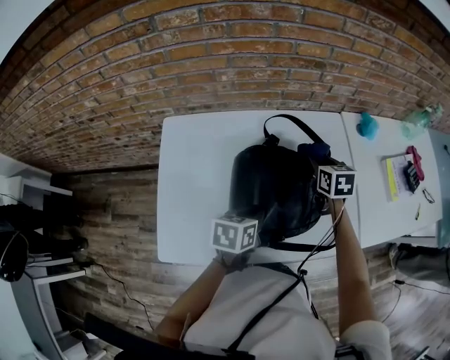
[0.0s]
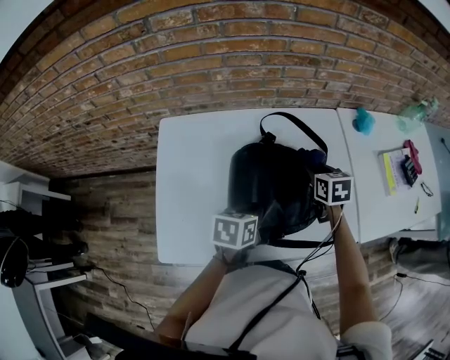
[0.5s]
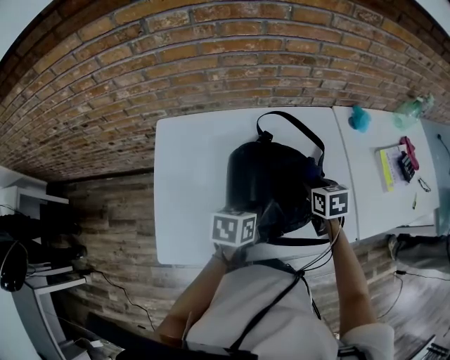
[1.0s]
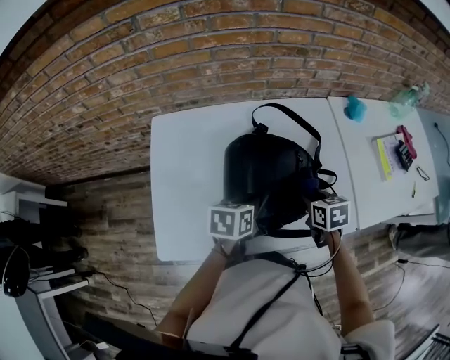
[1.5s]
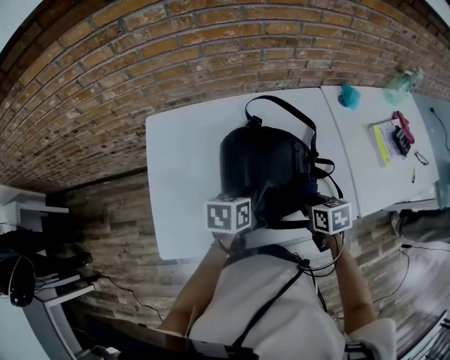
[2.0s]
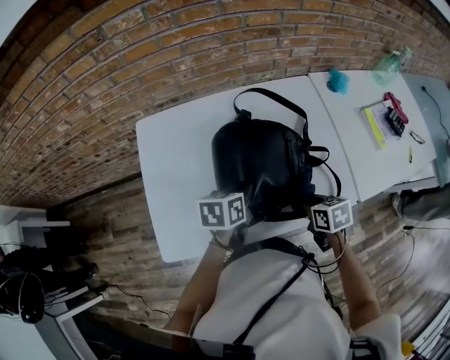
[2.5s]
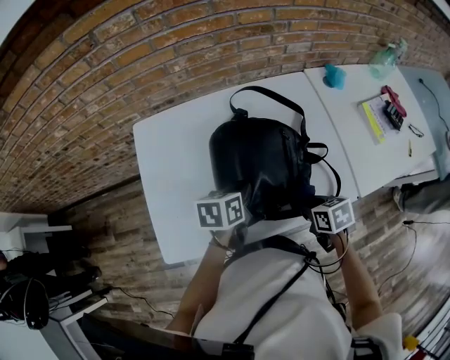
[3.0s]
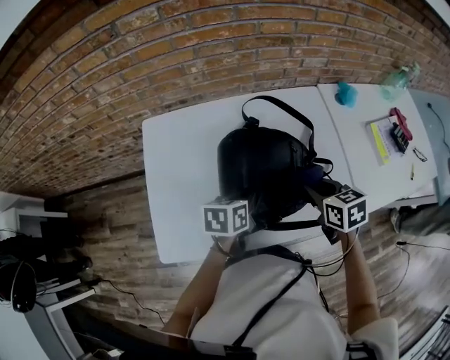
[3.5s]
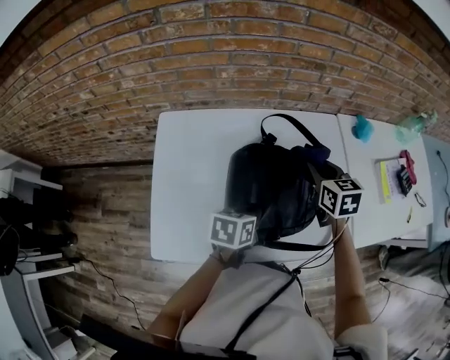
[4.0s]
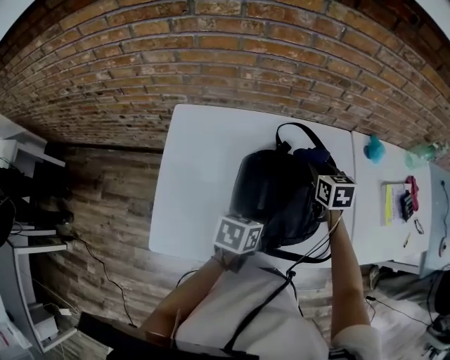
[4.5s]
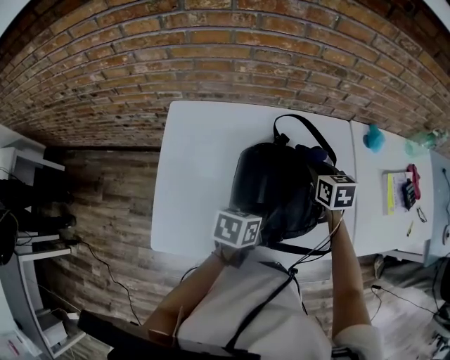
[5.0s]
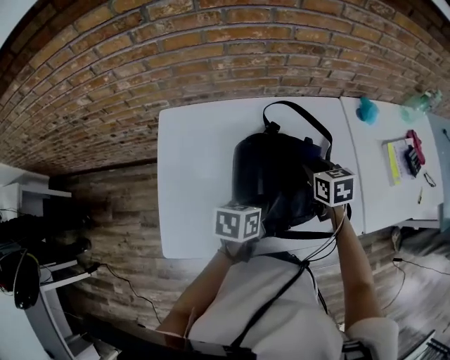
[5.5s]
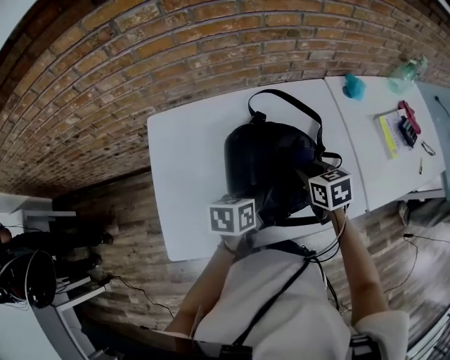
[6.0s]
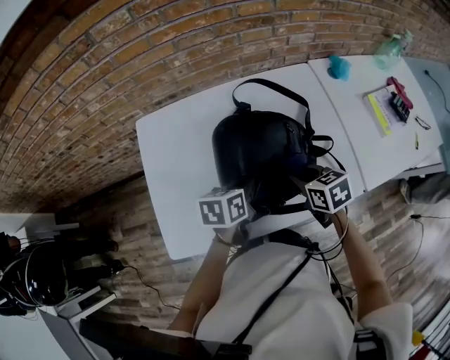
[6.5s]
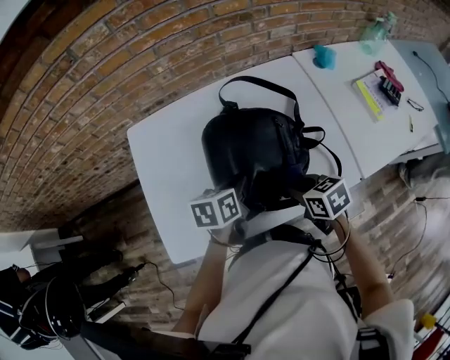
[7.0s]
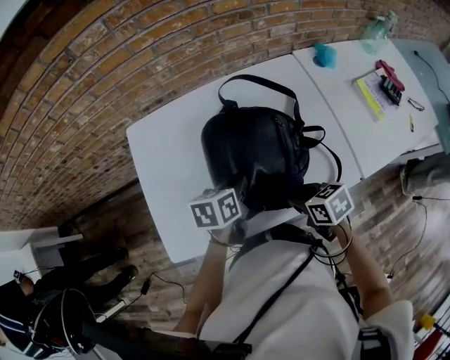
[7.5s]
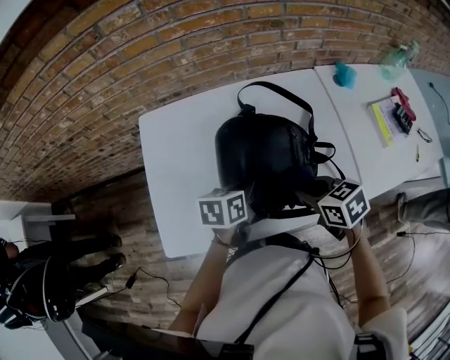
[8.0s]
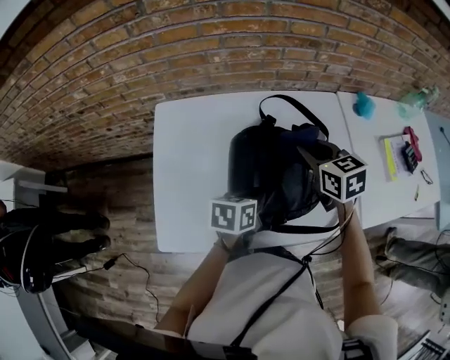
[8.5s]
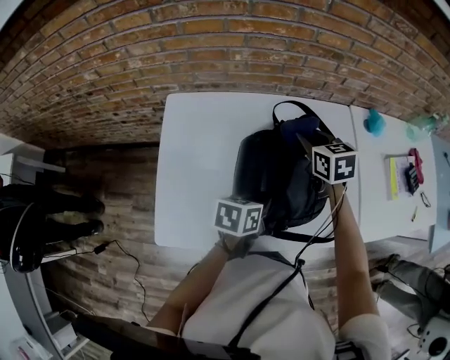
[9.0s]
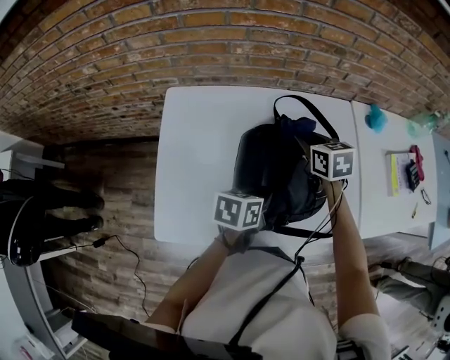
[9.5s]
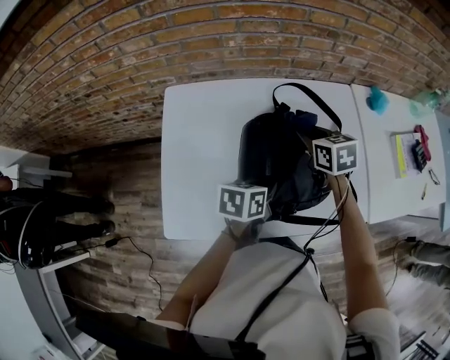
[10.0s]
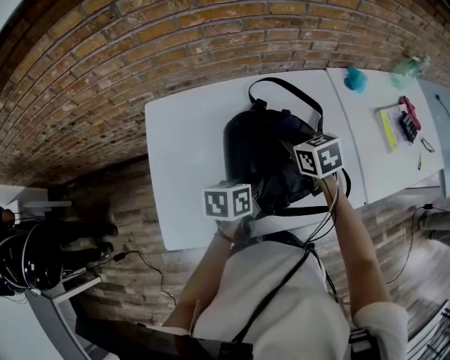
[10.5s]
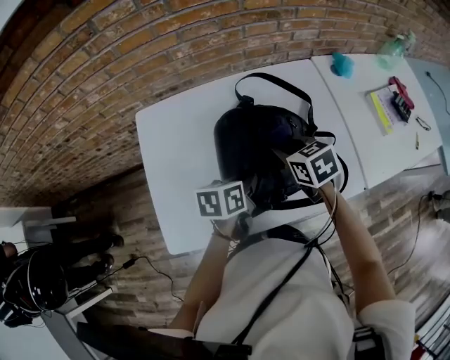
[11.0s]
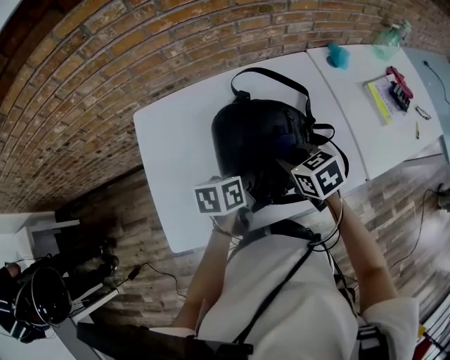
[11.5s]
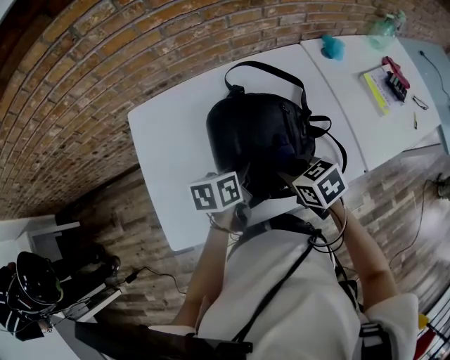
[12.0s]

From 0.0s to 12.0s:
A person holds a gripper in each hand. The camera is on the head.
From 0.0s to 2.0s: The right gripper shifts some 20 cm backward.
From 2.0s to 4.0s: The right gripper is displaced forward and upward by about 20 cm, and changes its angle by approximately 20 degrees.
From 4.0s to 6.0s: The right gripper is displaced backward and downward by some 10 cm.
From 6.0s to 8.0s: The right gripper goes roughly 10 cm backward.
From 8.0s to 10.0s: The right gripper moves forward, approximately 20 cm.
From 10.0s to 12.0s: The right gripper travels backward by some 20 cm.

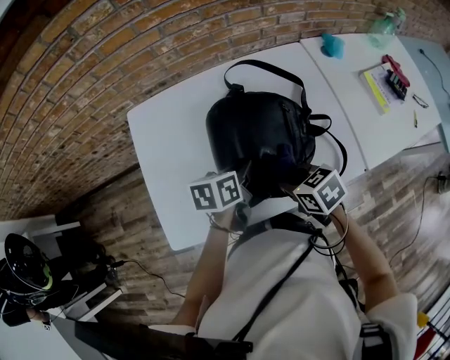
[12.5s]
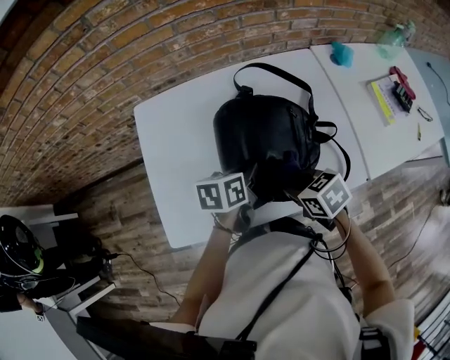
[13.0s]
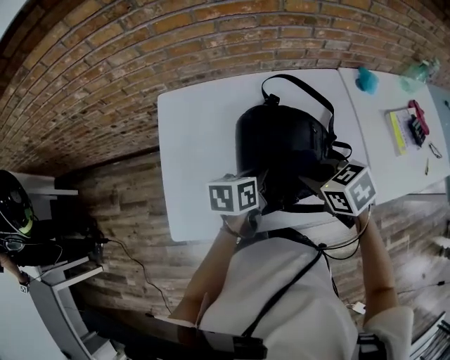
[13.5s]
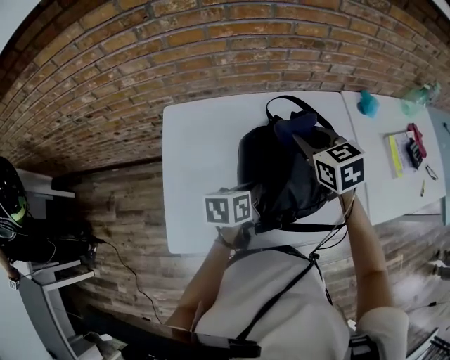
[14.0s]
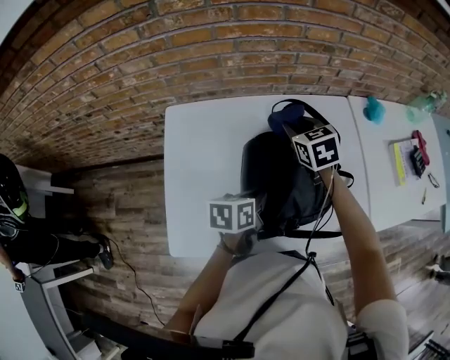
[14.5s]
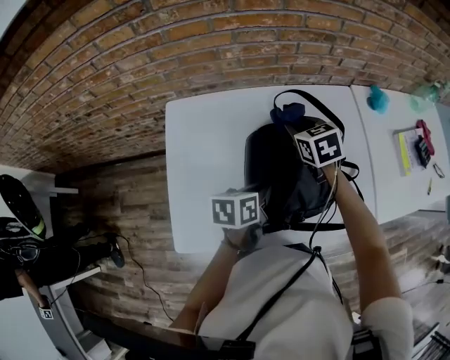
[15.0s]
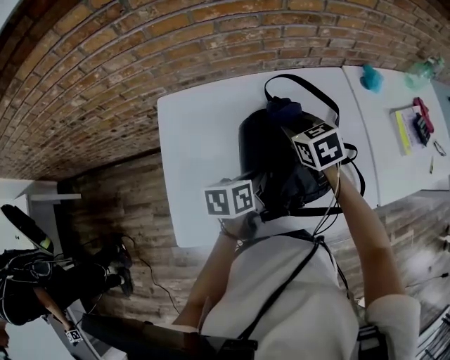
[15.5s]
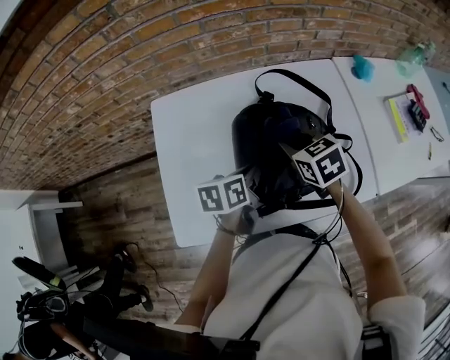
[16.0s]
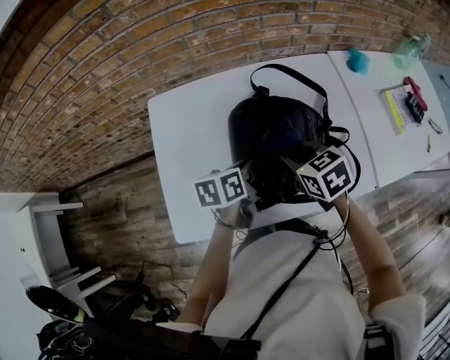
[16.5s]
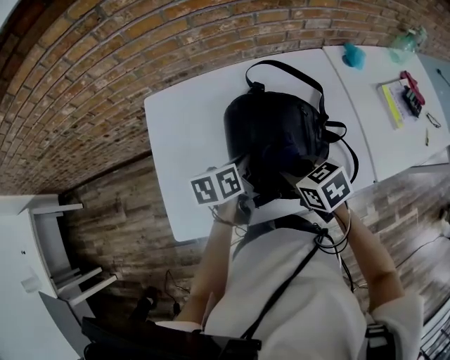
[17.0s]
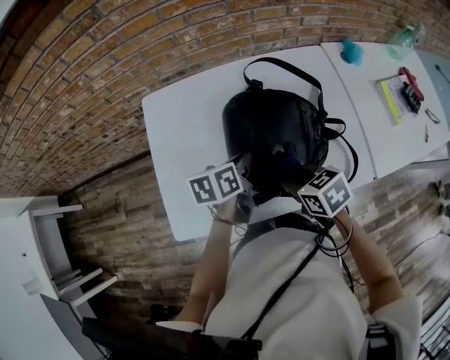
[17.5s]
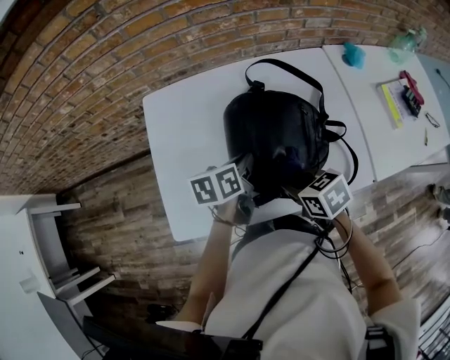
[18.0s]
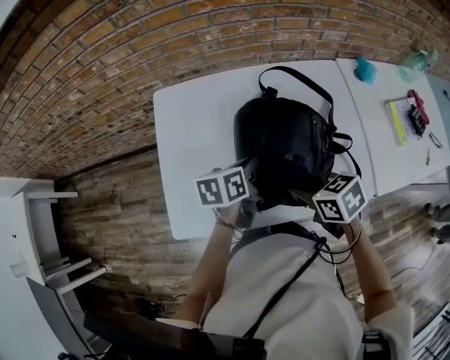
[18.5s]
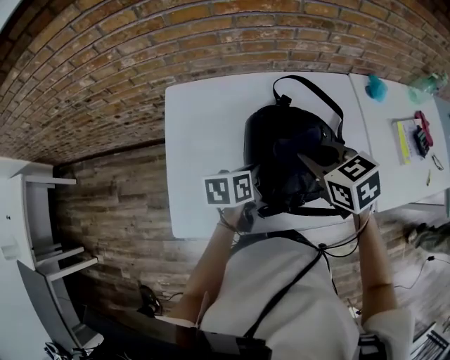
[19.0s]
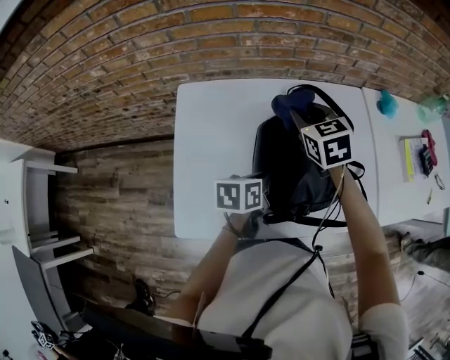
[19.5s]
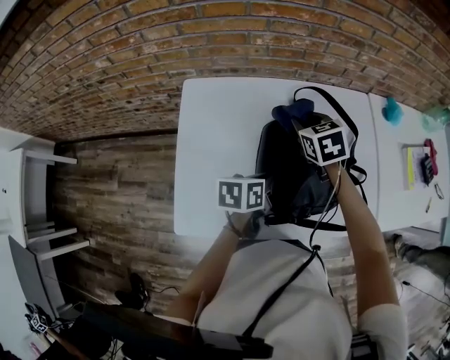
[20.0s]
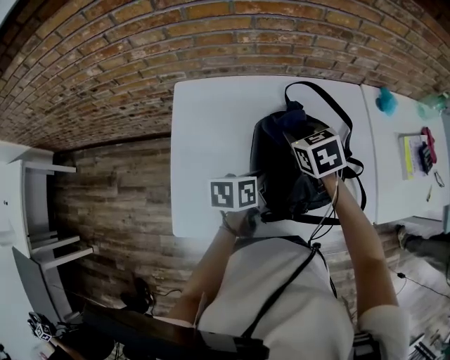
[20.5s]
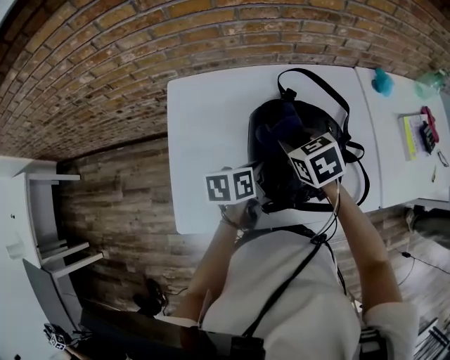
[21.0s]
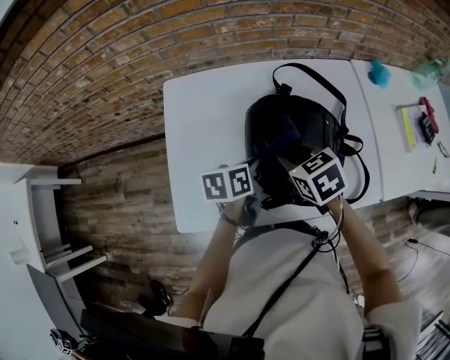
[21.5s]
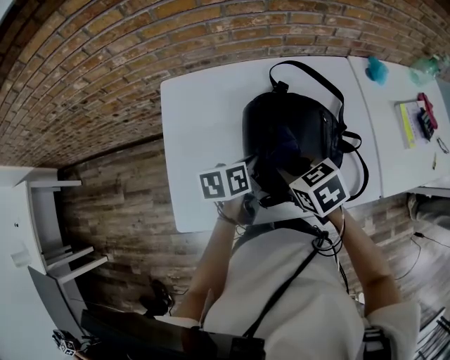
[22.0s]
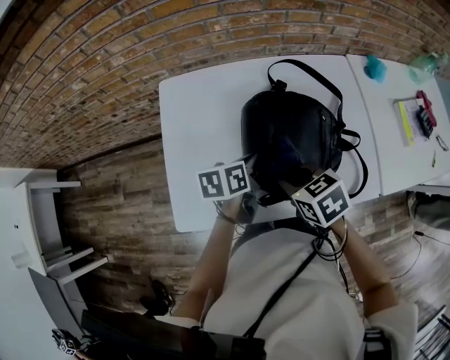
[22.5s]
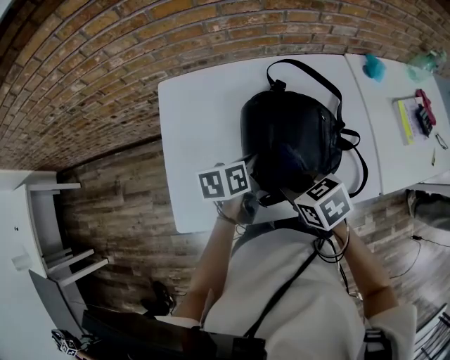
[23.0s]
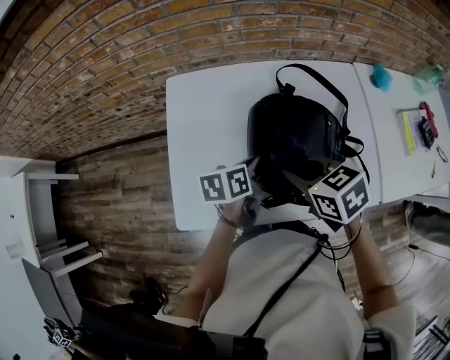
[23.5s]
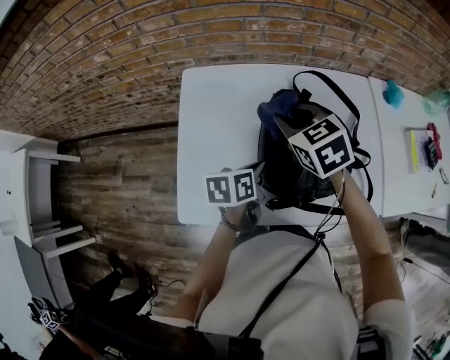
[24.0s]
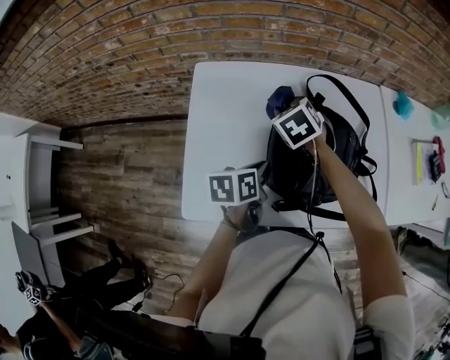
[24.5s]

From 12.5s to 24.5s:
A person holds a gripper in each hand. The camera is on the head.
From 12.5s to 14.5s: The right gripper moves forward, approximately 25 cm, and swivels approximately 30 degrees.
From 14.5s to 16.5s: The right gripper travels backward by some 20 cm.
From 16.5s to 18.5s: The right gripper goes some 10 cm backward.
From 18.5s to 20.5s: The right gripper goes roughly 20 cm forward, and turns by roughly 20 degrees.
From 20.5s to 22.5s: The right gripper heads backward, covering approximately 15 cm.
From 22.5s to 24.5s: The left gripper shifts by roughly 5 cm. Meanwhile the right gripper moves forward and to the left, roughly 20 cm, and changes its angle by about 30 degrees.

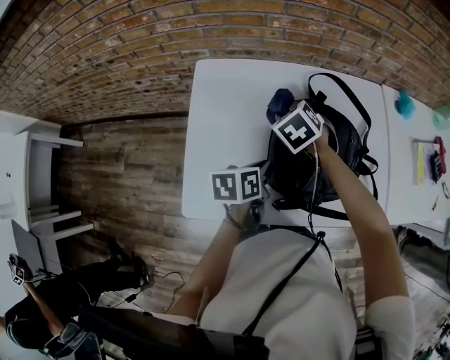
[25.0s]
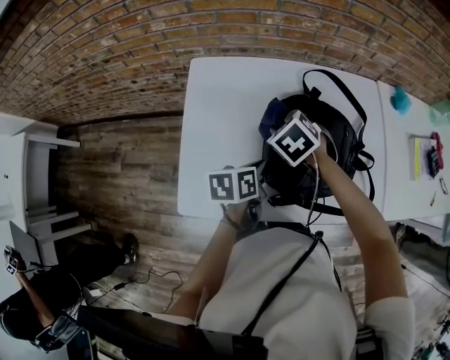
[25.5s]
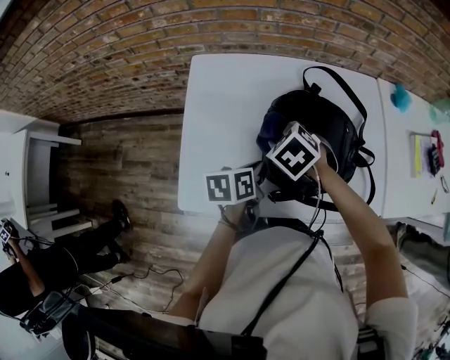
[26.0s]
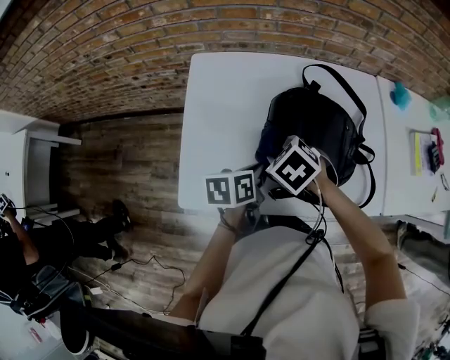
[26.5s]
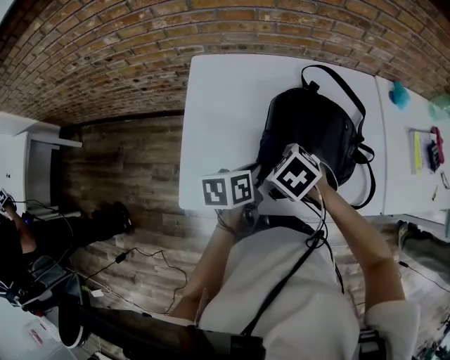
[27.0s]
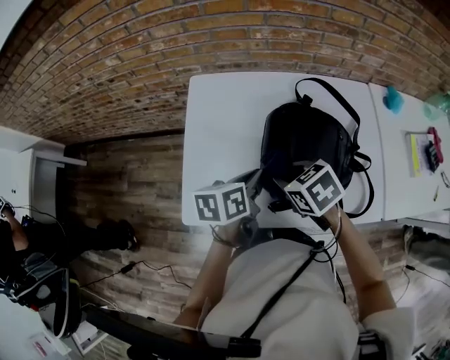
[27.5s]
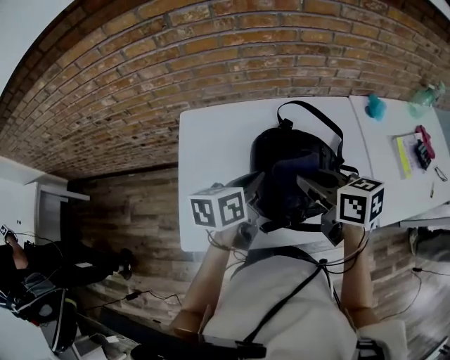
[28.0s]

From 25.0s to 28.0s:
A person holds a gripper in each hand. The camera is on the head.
From 25.0s to 26.5s: The right gripper goes some 15 cm backward.
From 26.5s to 28.0s: The left gripper shifts about 15 cm upward and forward. The right gripper goes some 20 cm upward and to the right, and tips its fingers upward by about 40 degrees.
